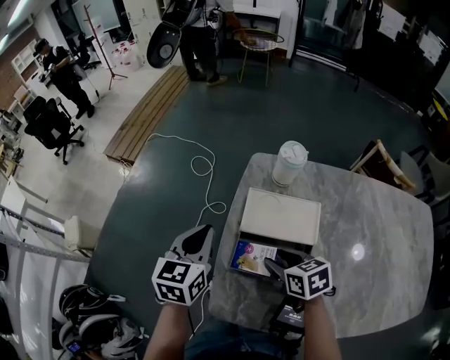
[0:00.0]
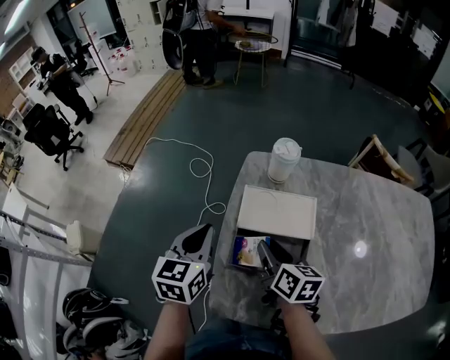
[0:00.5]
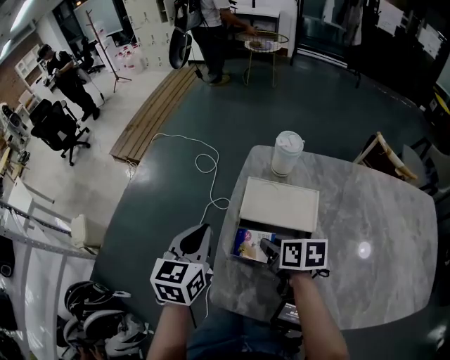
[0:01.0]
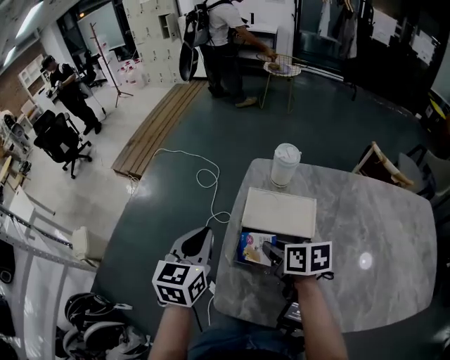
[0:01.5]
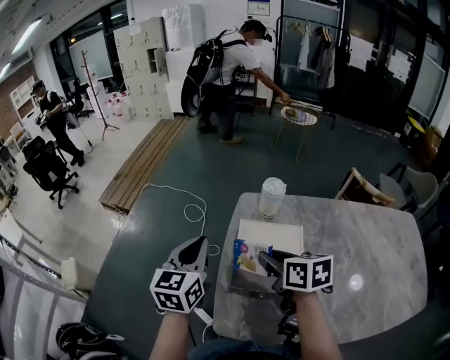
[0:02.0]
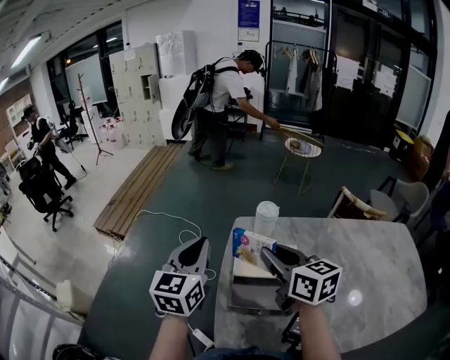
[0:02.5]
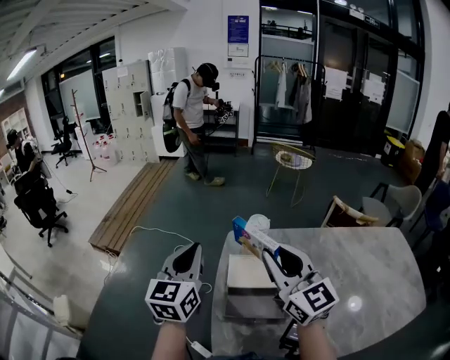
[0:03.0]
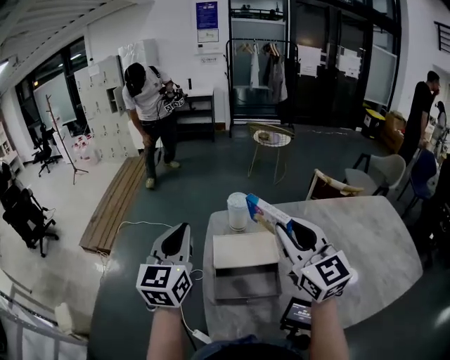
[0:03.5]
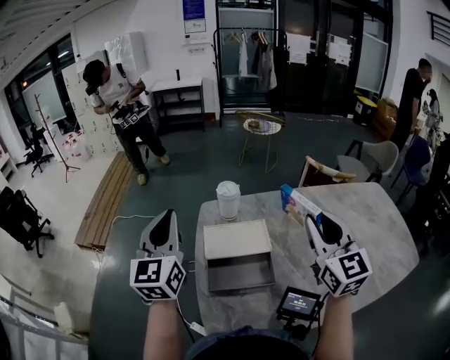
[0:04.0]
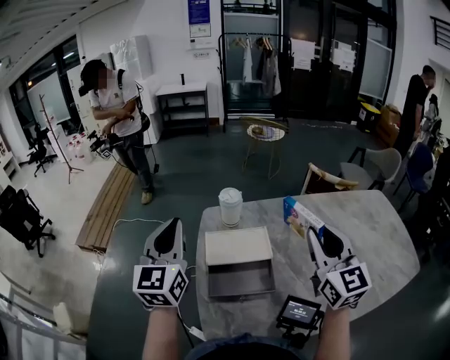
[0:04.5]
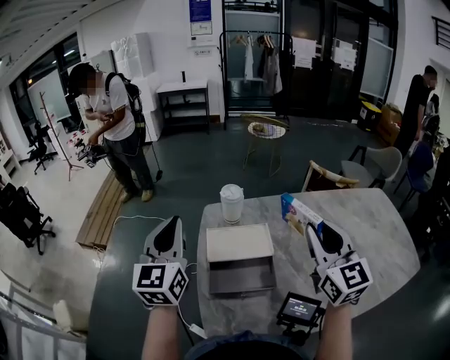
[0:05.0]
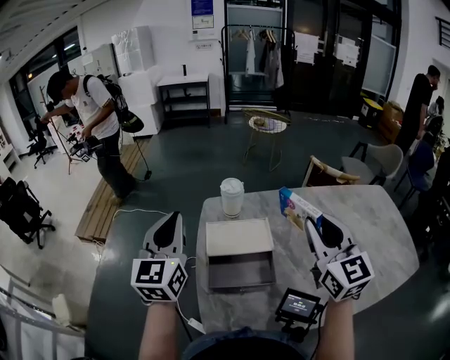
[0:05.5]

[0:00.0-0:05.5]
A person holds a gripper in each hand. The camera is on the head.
0.0 to 2.0 s: The left gripper goes approximately 10 cm upward. Meanwhile the right gripper shifts about 15 cm upward, swivels some 20 degrees, and closes its fingers.
2.0 to 3.5 s: The left gripper goes about 10 cm upward, while the right gripper travels upward and to the right by roughly 20 cm, and tips its fingers upward by roughly 40 degrees.
3.5 to 5.5 s: The right gripper shifts approximately 10 cm to the right.

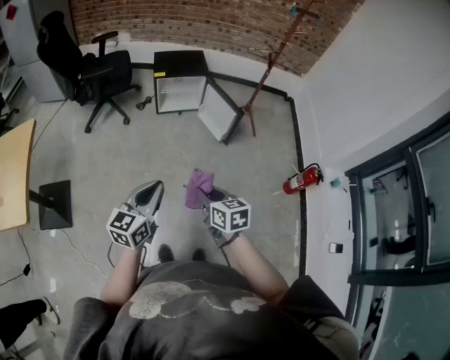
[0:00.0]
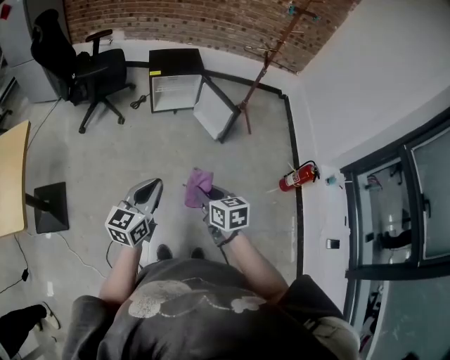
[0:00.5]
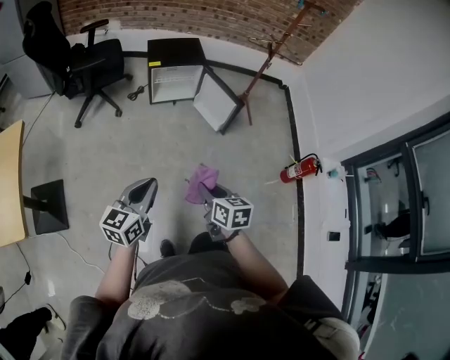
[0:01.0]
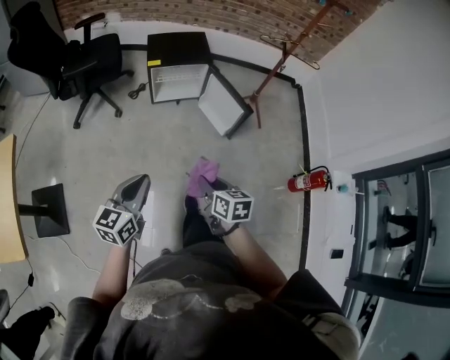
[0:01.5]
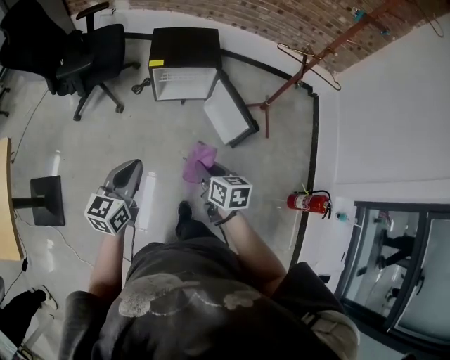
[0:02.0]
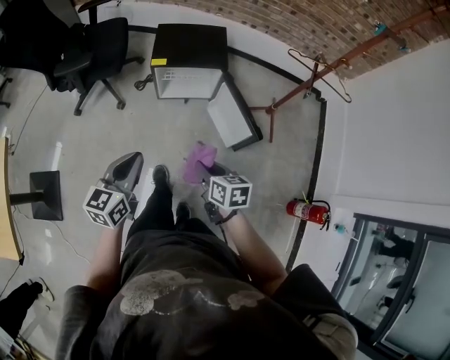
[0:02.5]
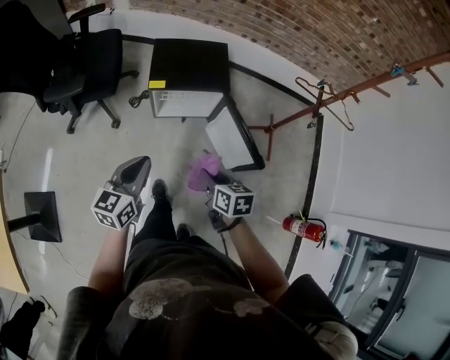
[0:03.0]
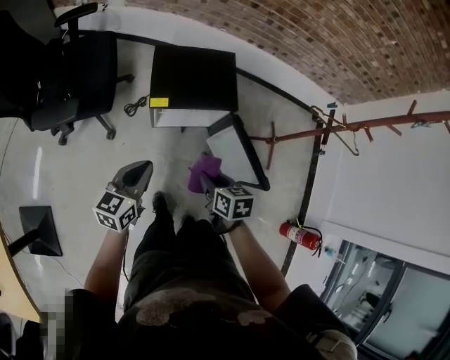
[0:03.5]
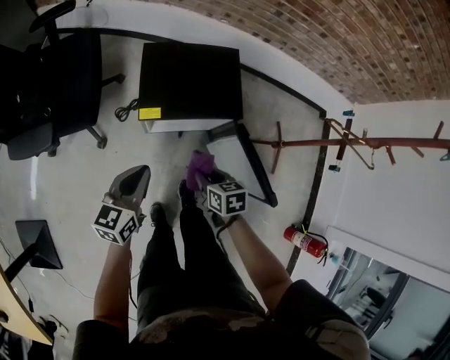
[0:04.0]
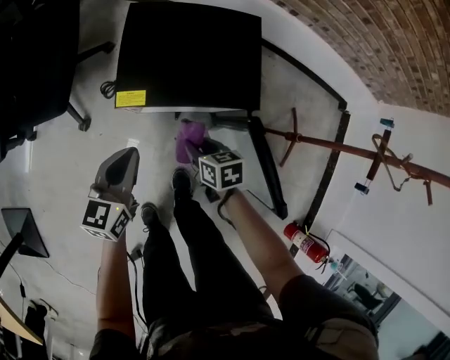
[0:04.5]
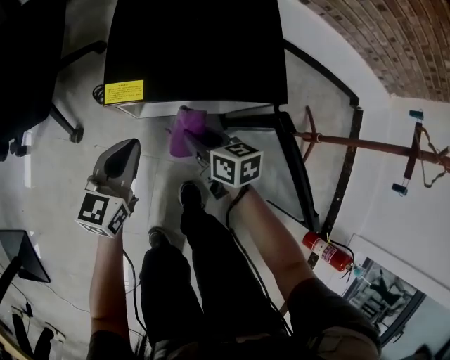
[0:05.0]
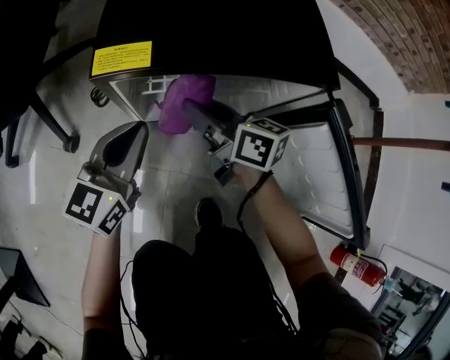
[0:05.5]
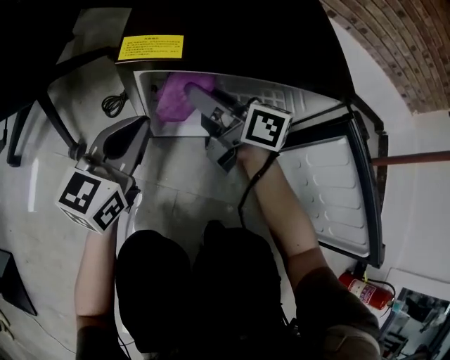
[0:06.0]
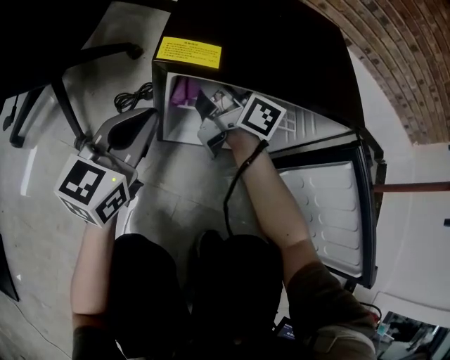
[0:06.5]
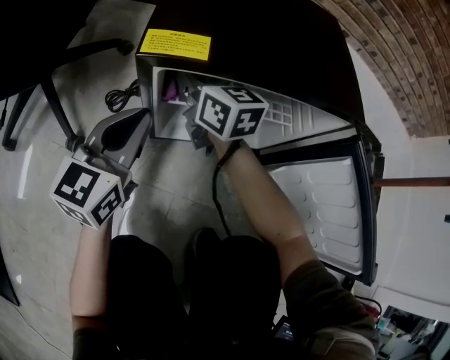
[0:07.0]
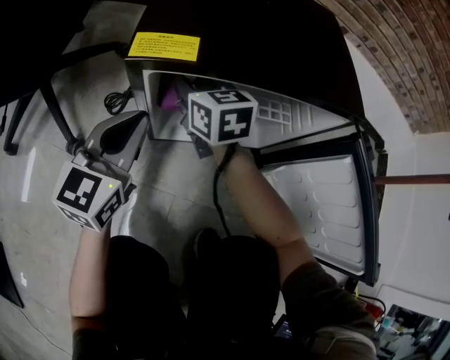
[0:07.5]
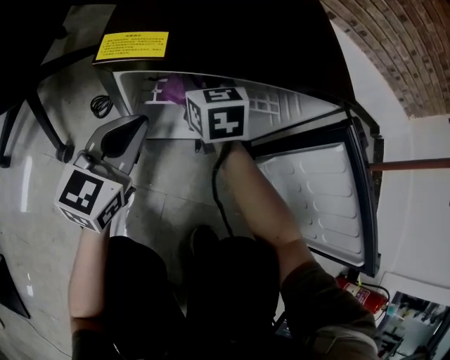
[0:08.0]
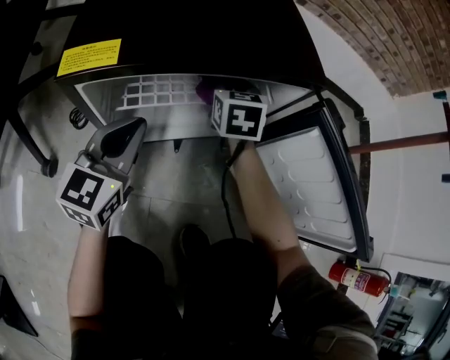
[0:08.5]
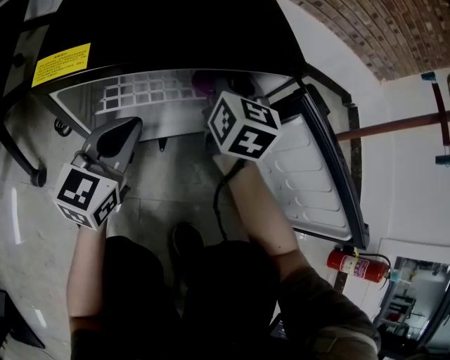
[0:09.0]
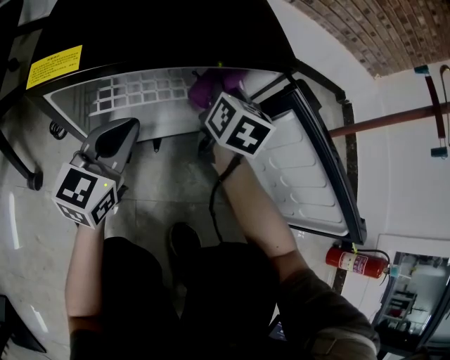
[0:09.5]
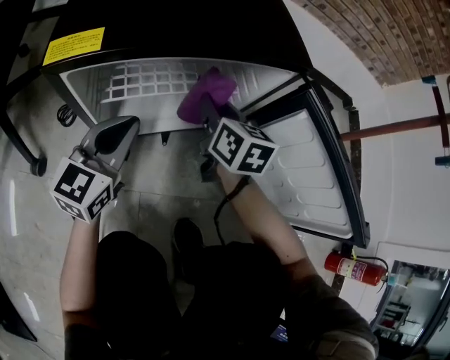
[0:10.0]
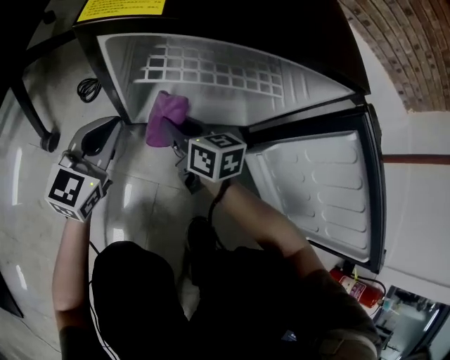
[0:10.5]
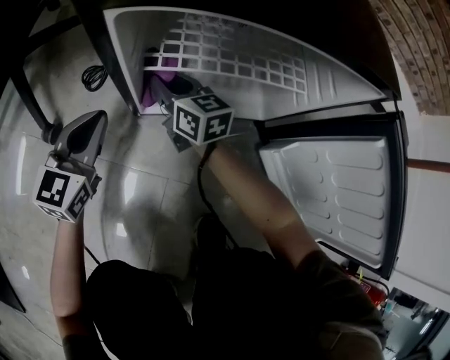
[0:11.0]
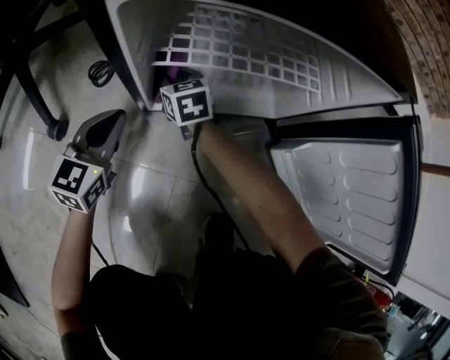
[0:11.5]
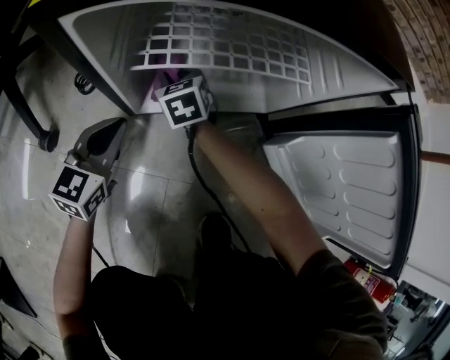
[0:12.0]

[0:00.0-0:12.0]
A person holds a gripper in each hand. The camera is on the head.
0.0 to 2.0 s: The two grippers go approximately 30 cm forward.
2.0 to 4.0 s: The right gripper travels forward and downward by roughly 40 cm. The left gripper is displaced forward by roughly 40 cm.
4.0 to 6.0 s: The left gripper goes roughly 30 cm downward and forward; the right gripper travels forward and downward by some 30 cm, and angles its fingers upward, by approximately 50 degrees.
6.0 to 8.0 s: The right gripper is displaced forward and downward by approximately 10 cm, and changes its angle by roughly 60 degrees.
8.0 to 10.0 s: The right gripper moves to the right, about 15 cm, and swivels about 30 degrees. Meanwhile the left gripper travels to the right by some 5 cm.
10.0 to 12.0 s: The two grippers go some 20 cm downward. The right gripper rotates some 40 degrees.

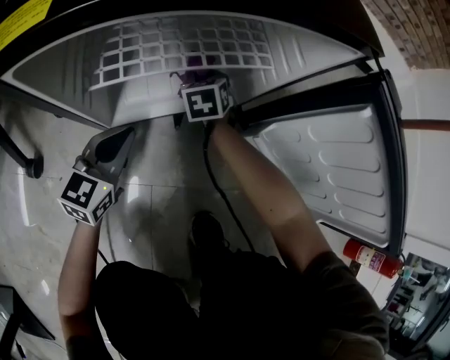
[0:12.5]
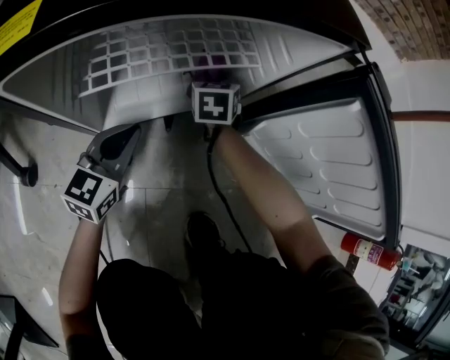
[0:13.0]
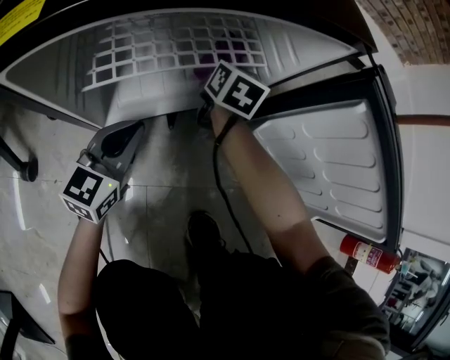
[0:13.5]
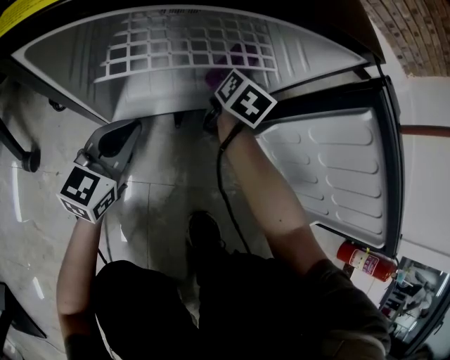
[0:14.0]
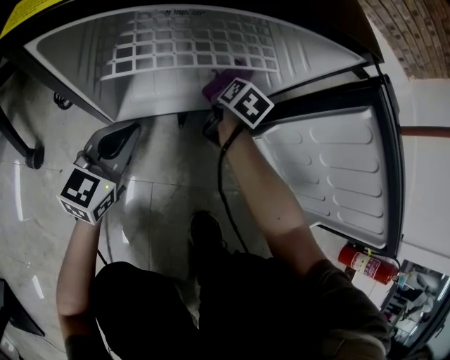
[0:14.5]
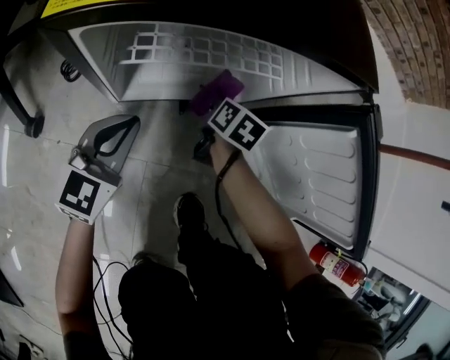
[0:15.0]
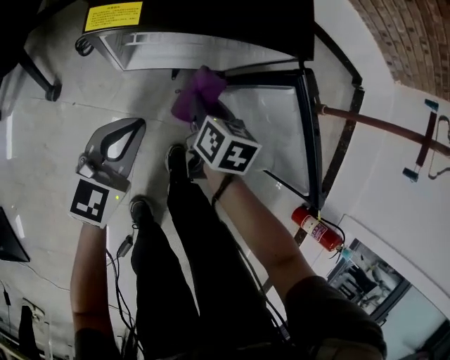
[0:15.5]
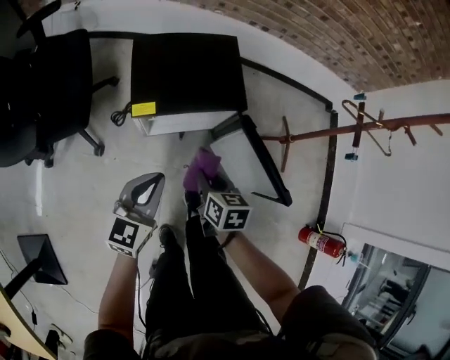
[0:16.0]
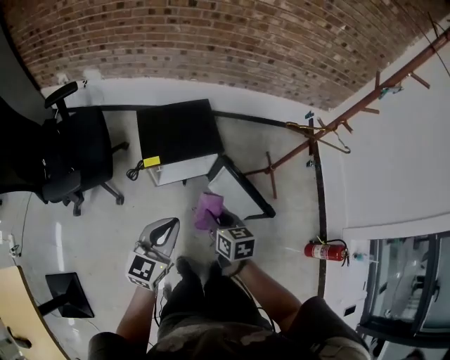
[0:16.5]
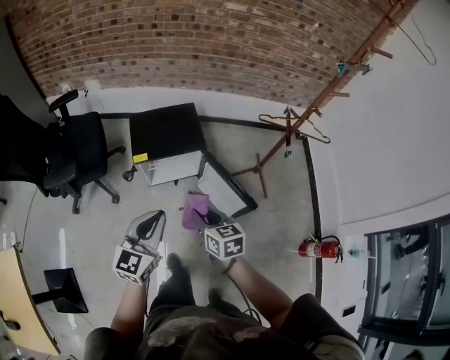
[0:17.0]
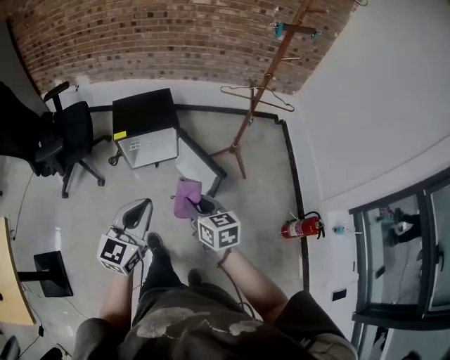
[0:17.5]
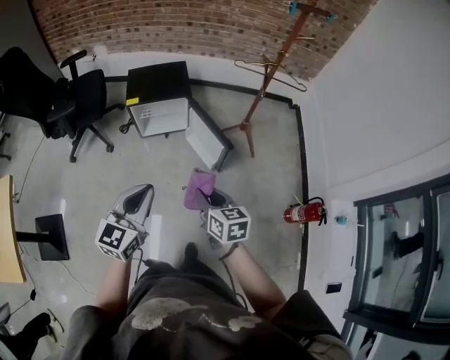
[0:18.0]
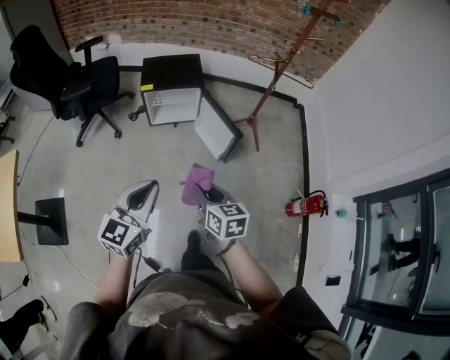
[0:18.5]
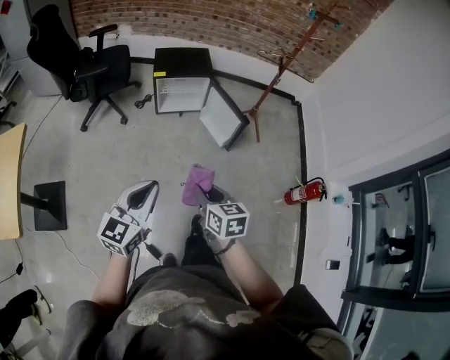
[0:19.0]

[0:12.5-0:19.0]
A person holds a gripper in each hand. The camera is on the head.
12.5 to 14.5 s: The right gripper heads to the right, covering approximately 10 cm, and rolls clockwise, seen from behind, by approximately 50 degrees.
14.5 to 17.0 s: Both grippers travel together upward and backward, approximately 80 cm. The right gripper rotates roughly 40 degrees.
17.0 to 19.0 s: The pair of grippers is taken backward, roughly 40 cm.

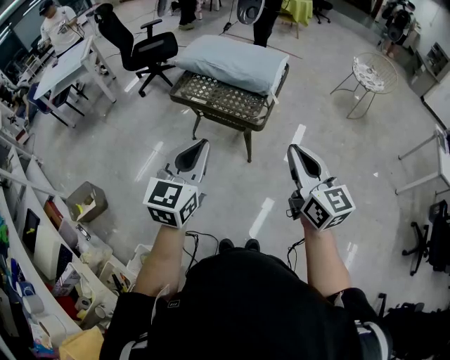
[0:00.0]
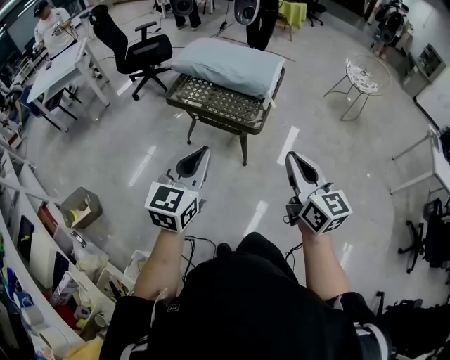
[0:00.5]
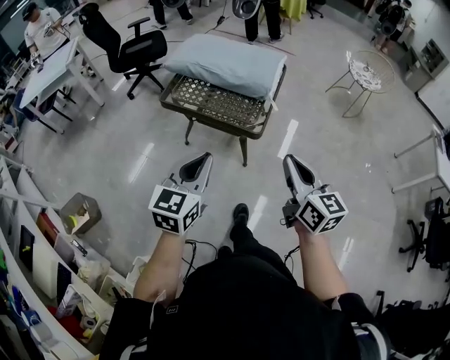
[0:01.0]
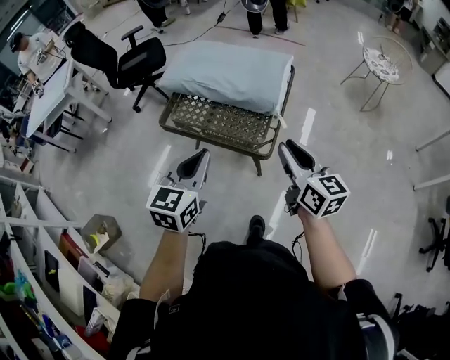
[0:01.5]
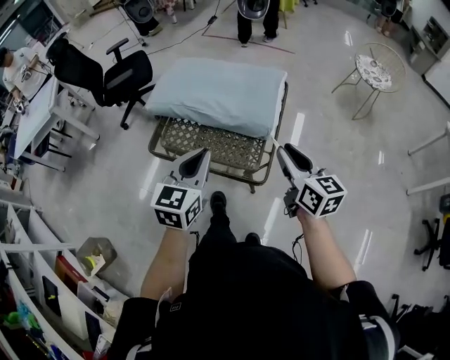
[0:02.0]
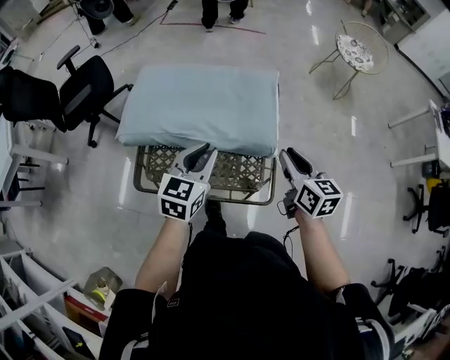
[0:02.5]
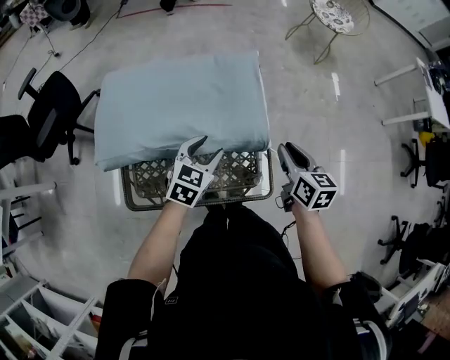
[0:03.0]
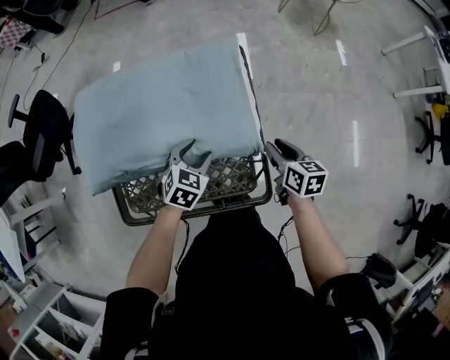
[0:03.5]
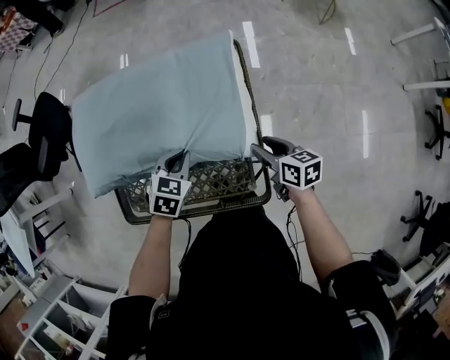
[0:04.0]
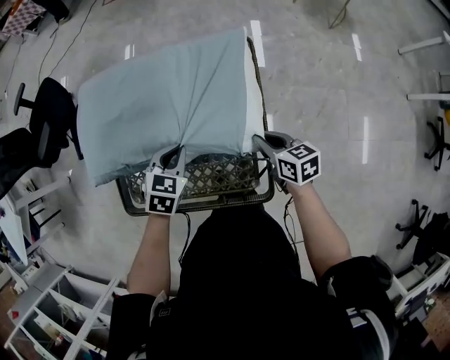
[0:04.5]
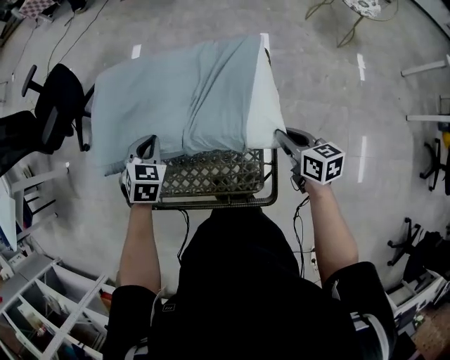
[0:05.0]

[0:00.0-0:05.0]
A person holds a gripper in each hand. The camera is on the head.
0.0 to 2.5 s: Both grippers are carried forward, approximately 60 cm. The left gripper swivels roughly 30 degrees. Meanwhile the right gripper turns by some 30 degrees.
2.5 to 5.0 s: The left gripper moves roughly 25 cm, turns by approximately 40 degrees, and opens and closes again. Meanwhile the right gripper travels downward by roughly 15 cm, and swivels some 20 degrees.
